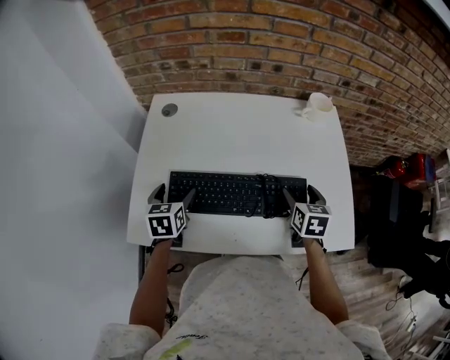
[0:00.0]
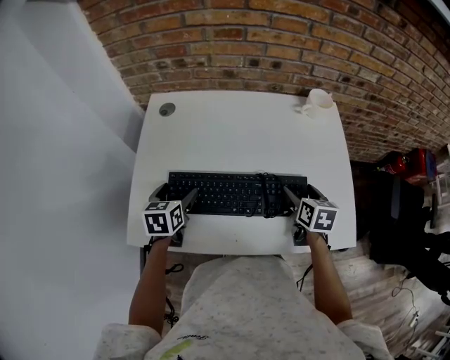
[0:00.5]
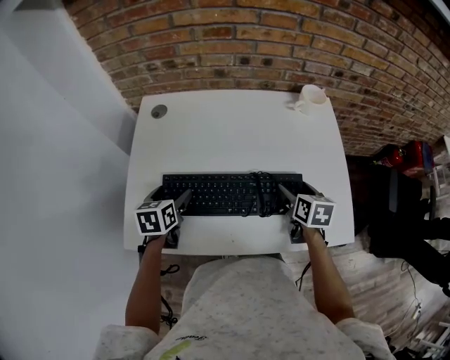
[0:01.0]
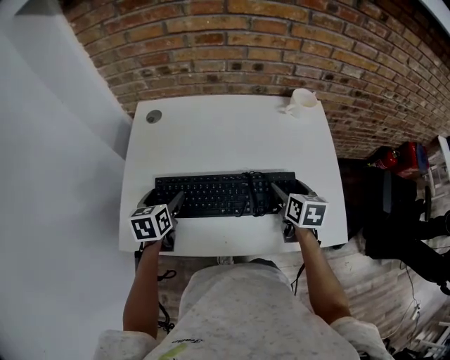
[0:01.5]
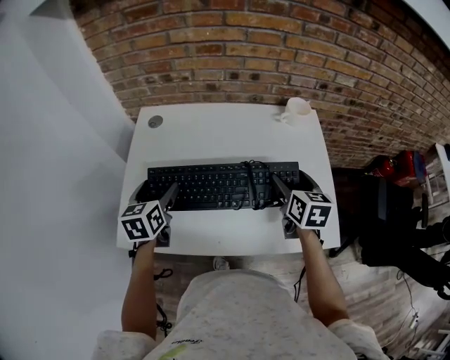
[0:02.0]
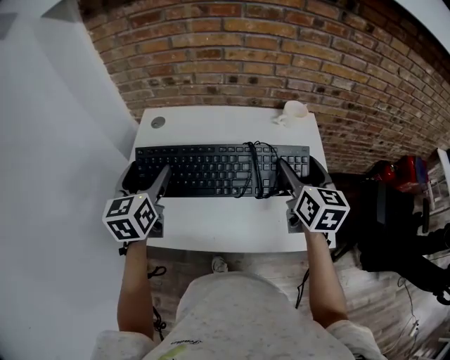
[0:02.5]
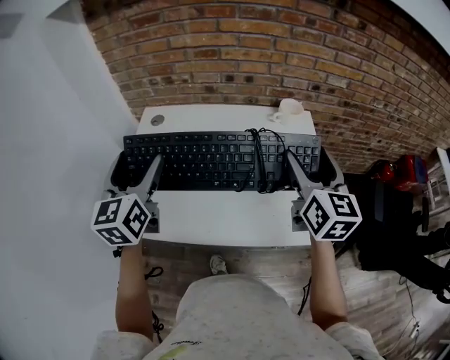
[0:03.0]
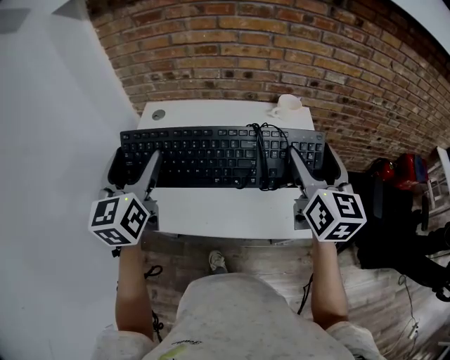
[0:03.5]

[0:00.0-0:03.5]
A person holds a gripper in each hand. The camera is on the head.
0:00.0 to 0:02.0: Both grippers travel together upward, roughly 10 cm.
0:02.0 to 0:03.5: The two grippers go about 20 cm upward. The right gripper swivels some 30 degrees, while the left gripper changes its angle by roughly 30 degrees.

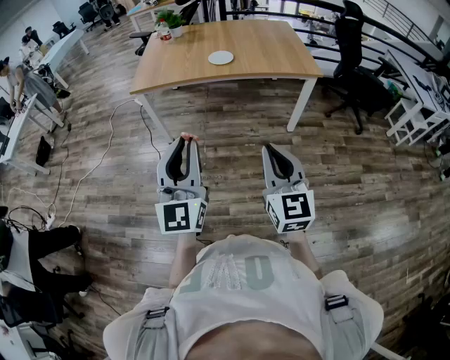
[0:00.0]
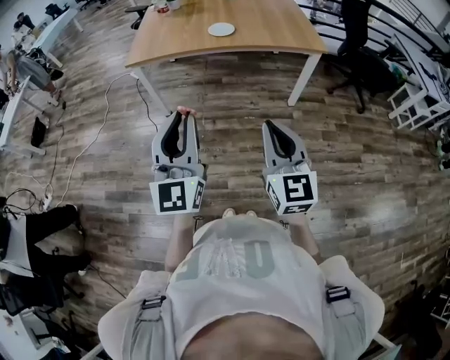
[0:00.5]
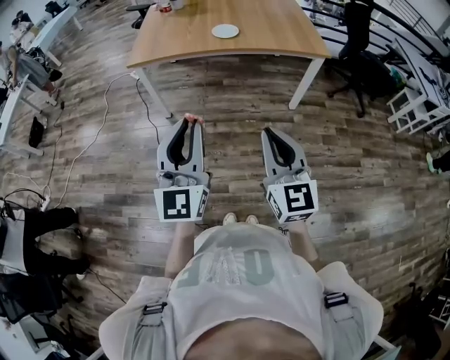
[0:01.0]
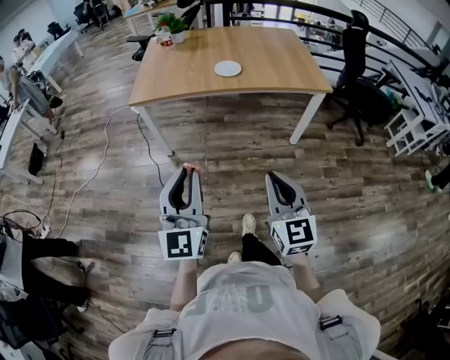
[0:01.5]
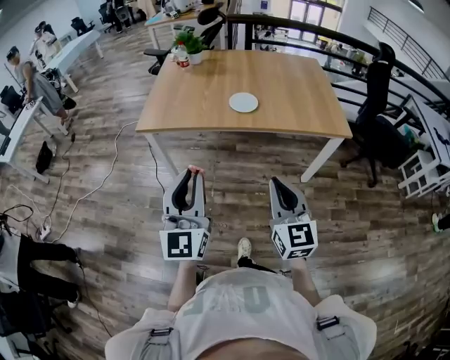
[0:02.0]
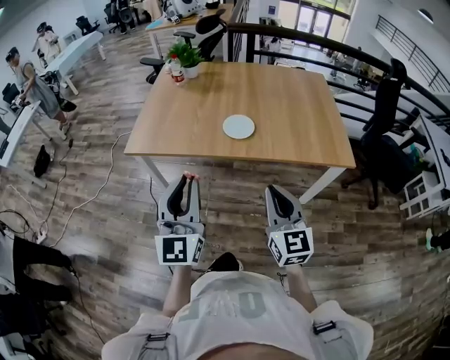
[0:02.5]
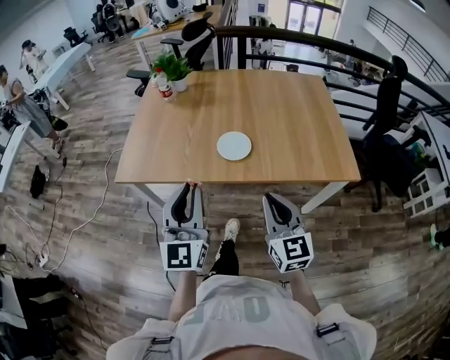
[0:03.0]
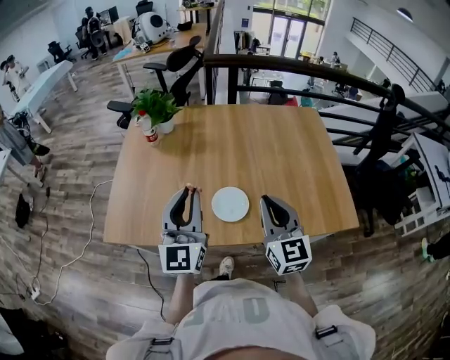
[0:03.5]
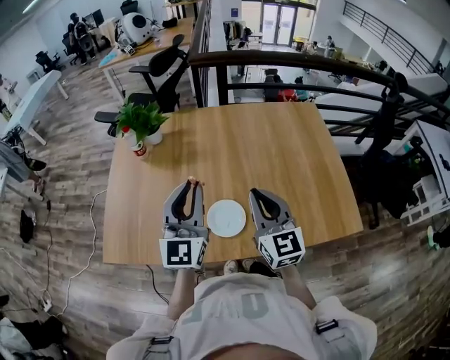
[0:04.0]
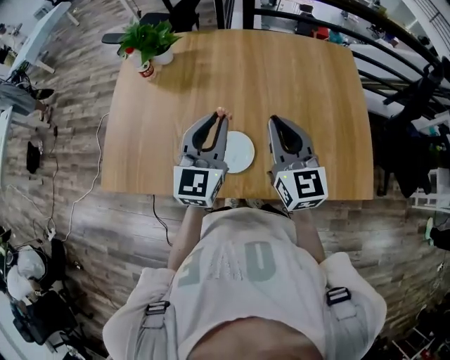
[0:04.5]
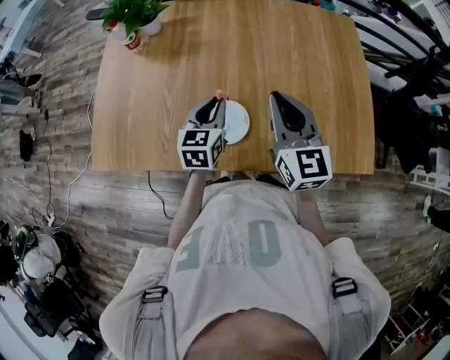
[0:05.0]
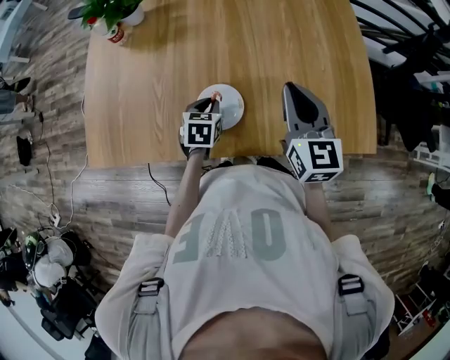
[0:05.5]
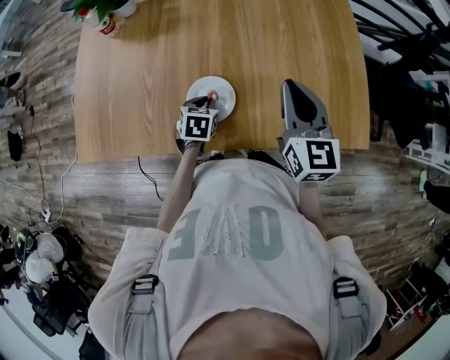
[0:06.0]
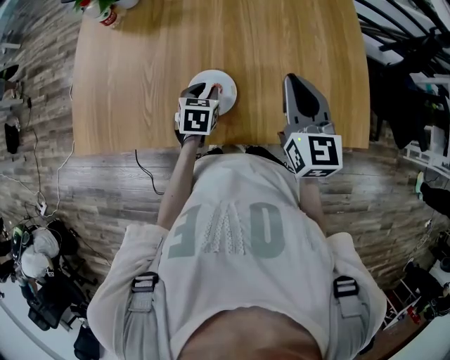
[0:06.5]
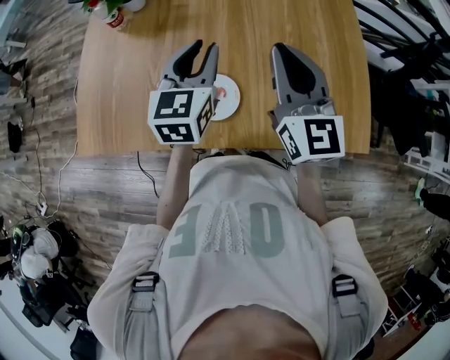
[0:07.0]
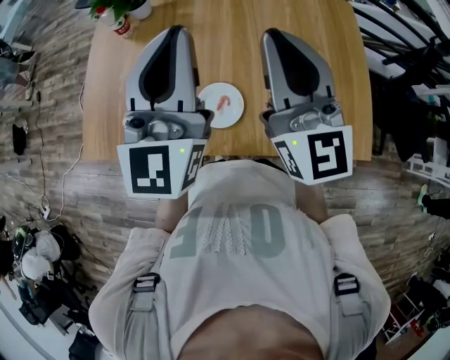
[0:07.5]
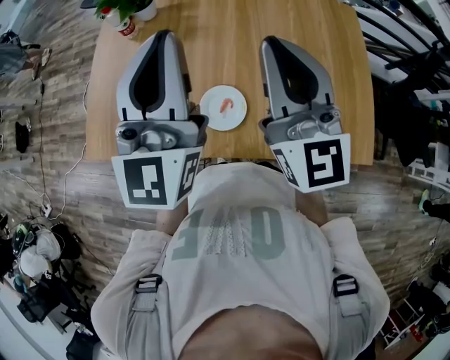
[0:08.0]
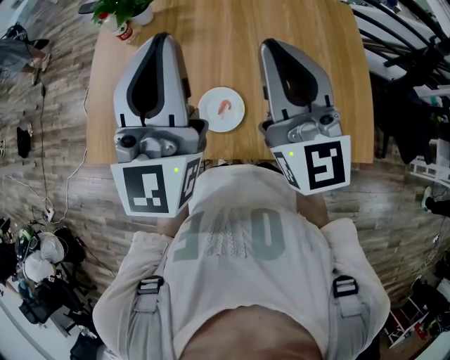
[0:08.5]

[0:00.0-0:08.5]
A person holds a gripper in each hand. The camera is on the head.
0:00.0 to 0:02.0: Both grippers move forward, some 25 cm.
0:02.0 to 0:04.0: The two grippers travel together, forward, approximately 50 cm.
0:04.0 to 0:06.5: The left gripper heads downward, covering about 30 cm, and angles its fingers downward, by approximately 60 degrees. Meanwhile the right gripper goes approximately 10 cm to the right.
0:06.5 to 0:08.5: The right gripper is displaced upward and to the left by roughly 20 cm, and rotates some 30 degrees. The left gripper is displaced upward by about 40 cm, angles its fingers upward, by roughly 70 degrees, and closes.

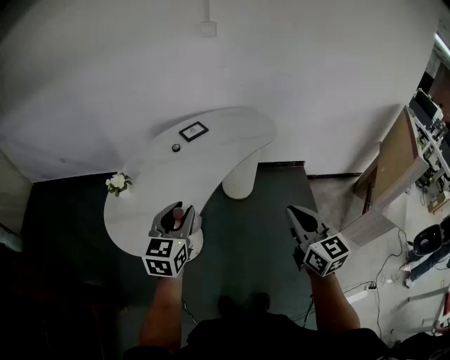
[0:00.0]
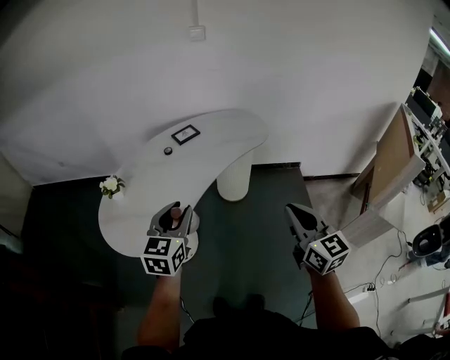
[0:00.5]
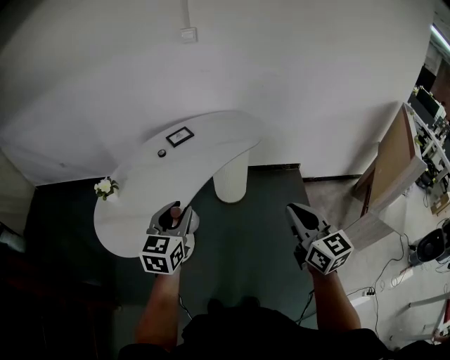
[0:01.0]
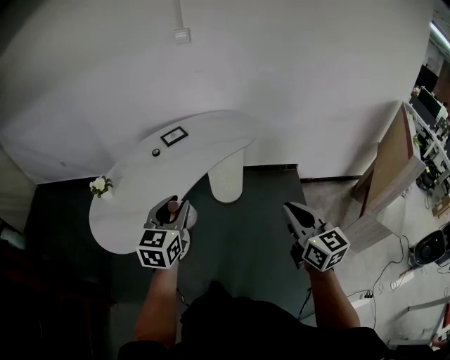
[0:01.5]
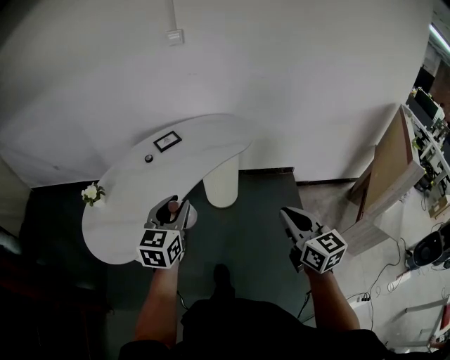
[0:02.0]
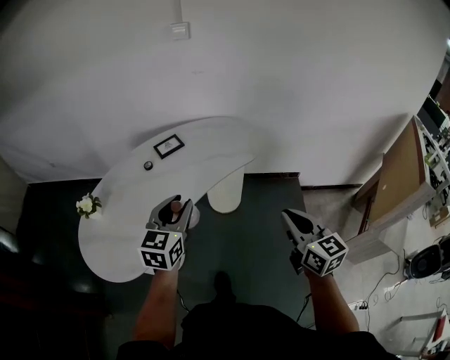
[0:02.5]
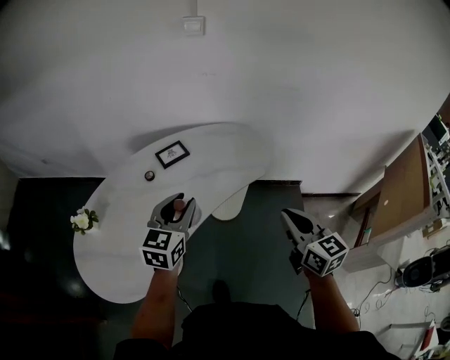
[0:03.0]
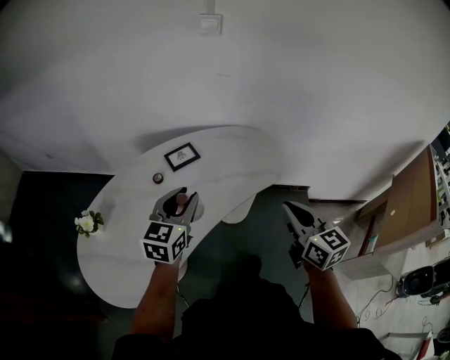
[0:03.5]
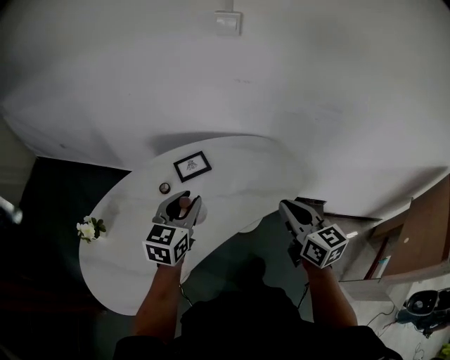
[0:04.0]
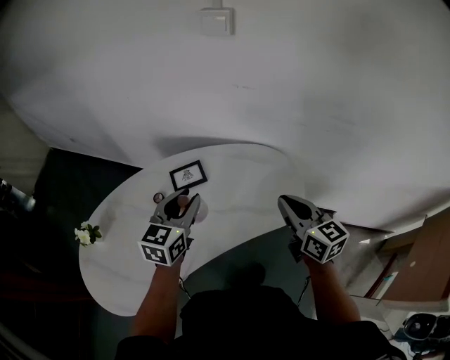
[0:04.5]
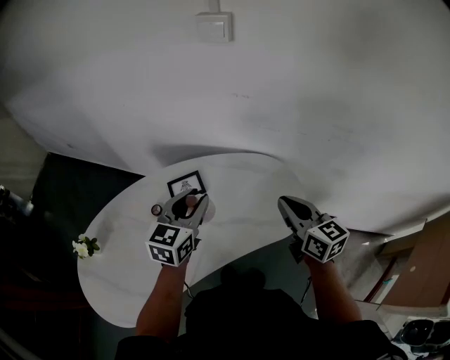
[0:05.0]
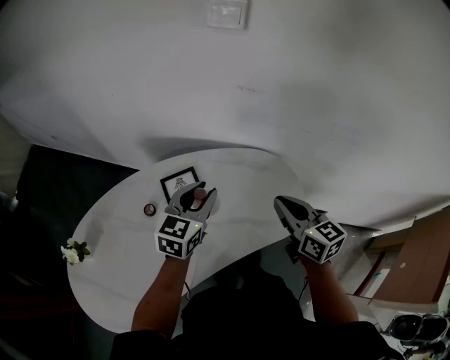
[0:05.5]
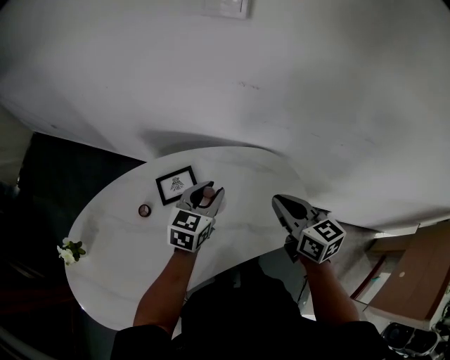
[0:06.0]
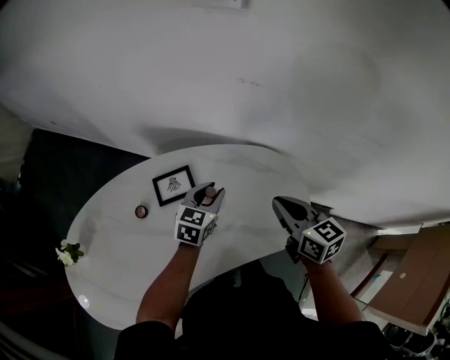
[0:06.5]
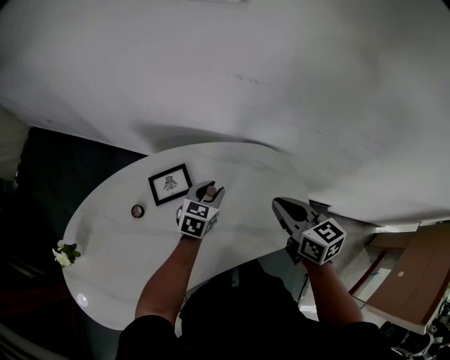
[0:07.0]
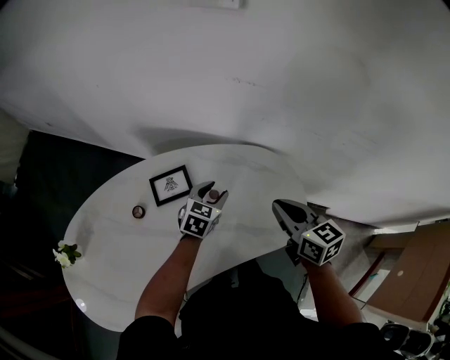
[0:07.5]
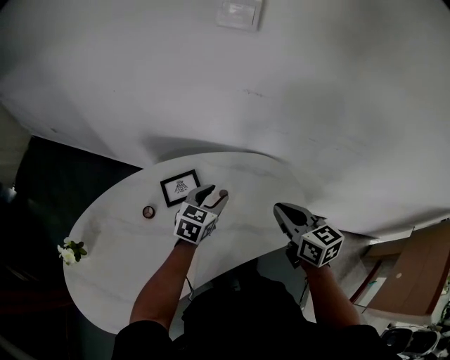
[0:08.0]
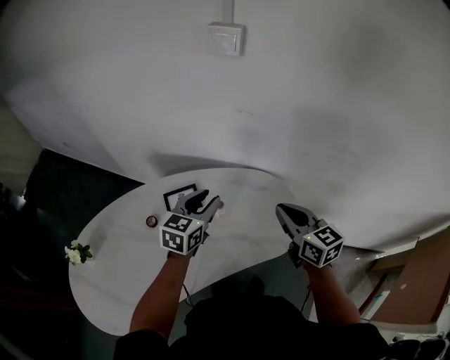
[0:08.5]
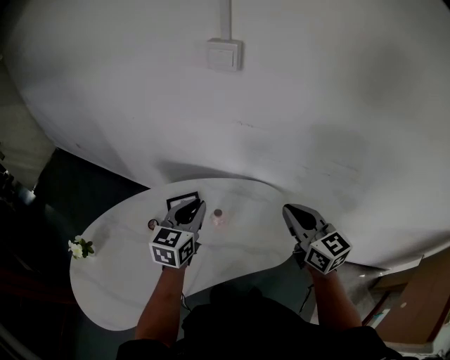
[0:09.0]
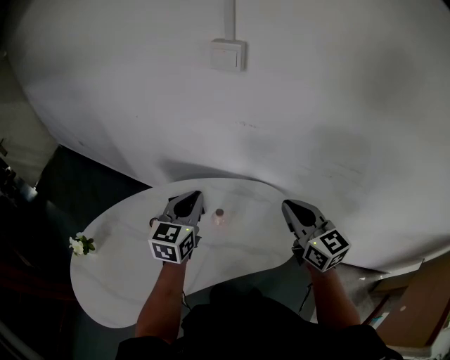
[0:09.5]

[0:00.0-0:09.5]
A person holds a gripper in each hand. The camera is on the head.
0:00.0 to 0:02.0: The grippers both shift to the right by roughly 15 cm.
0:02.0 to 0:04.0: Both grippers travel together forward, some 40 cm.
0:04.0 to 0:05.5: The right gripper is displaced forward by roughly 20 cm; the left gripper goes some 20 cm forward and to the right.
0:05.5 to 0:07.5: The right gripper shifts about 10 cm downward and forward; the left gripper shifts approximately 20 cm downward and forward.
0:07.5 to 0:09.5: The left gripper travels upward by some 25 cm, swivels roughly 30 degrees, and closes; the right gripper travels upward by roughly 15 cm, and turns by roughly 30 degrees.

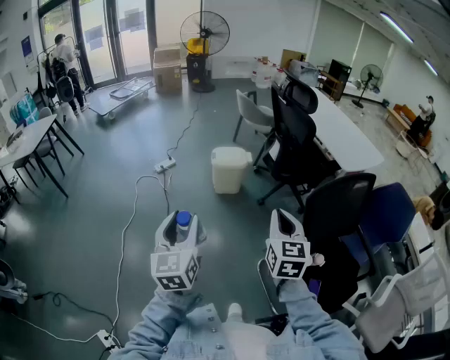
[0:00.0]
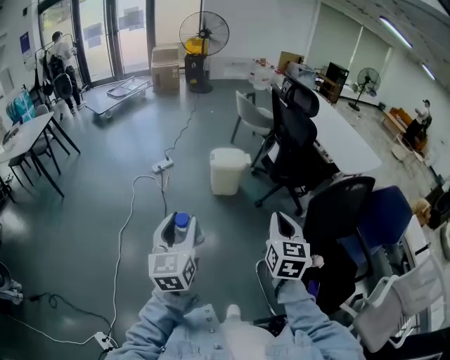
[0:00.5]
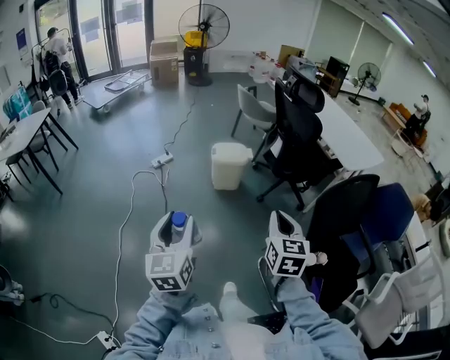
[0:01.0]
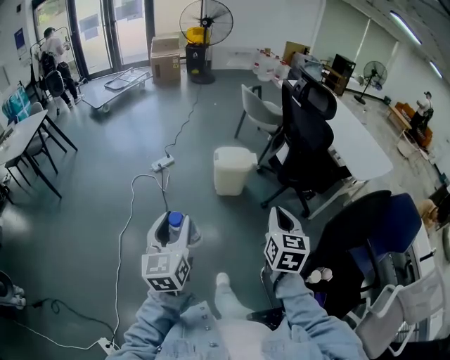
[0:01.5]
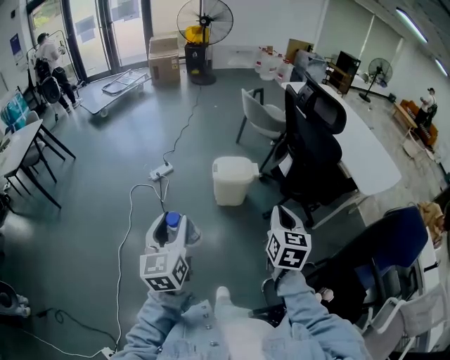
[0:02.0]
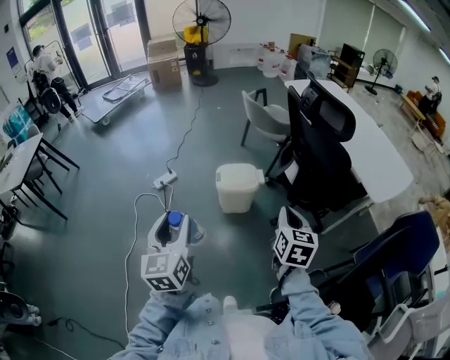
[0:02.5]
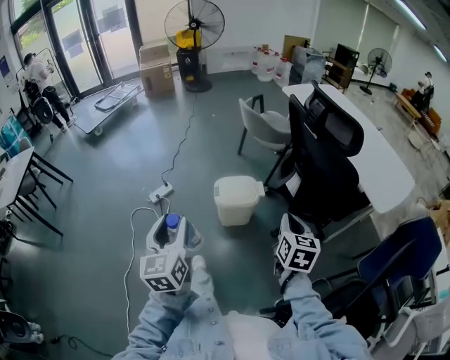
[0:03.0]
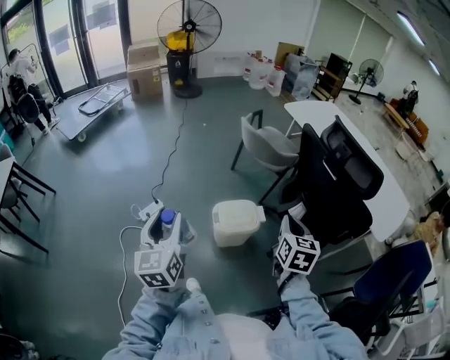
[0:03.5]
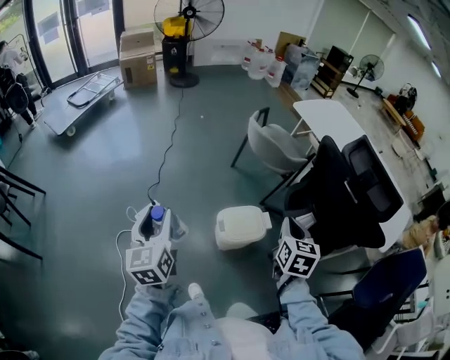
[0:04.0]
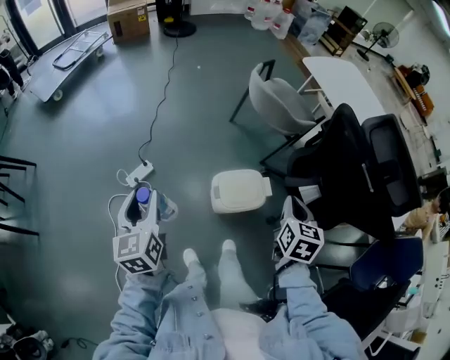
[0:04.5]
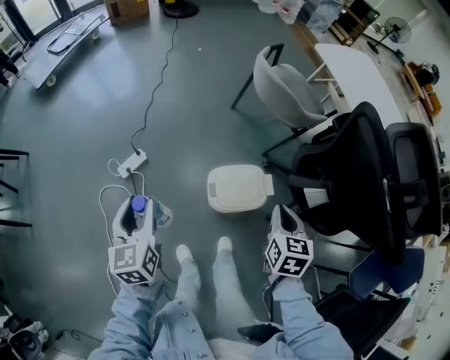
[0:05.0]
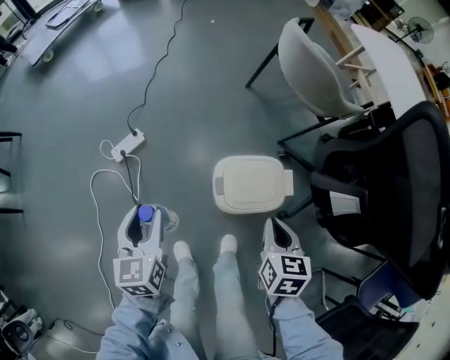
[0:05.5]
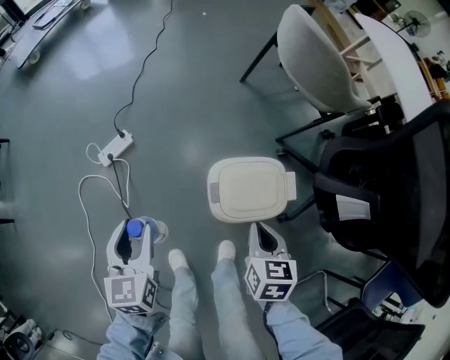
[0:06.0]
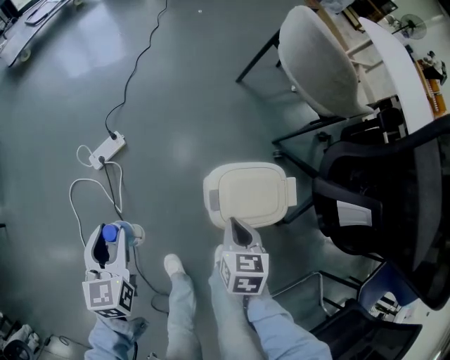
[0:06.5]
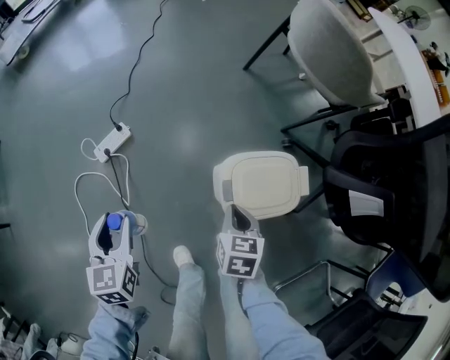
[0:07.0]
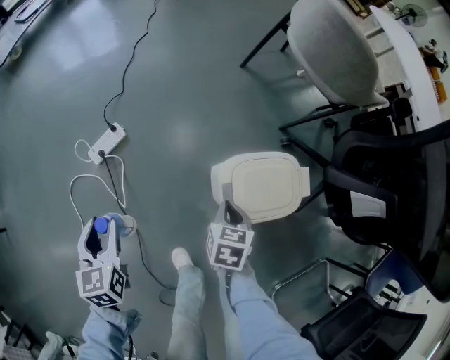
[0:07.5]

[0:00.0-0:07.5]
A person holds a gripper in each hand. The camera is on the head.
0:00.0 to 0:02.0: Both grippers move forward, some 25 cm.
0:02.0 to 0:04.0: Both grippers are carried forward, about 50 cm.
0:04.0 to 0:05.5: The grippers both shift downward by some 35 cm. The right gripper rotates about 20 degrees.
0:05.5 to 0:07.5: The grippers both shift downward and to the left by some 20 cm.
